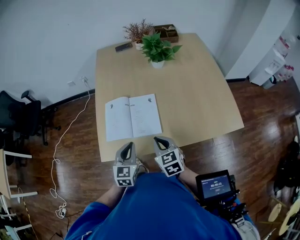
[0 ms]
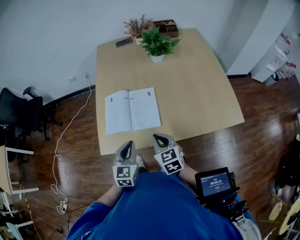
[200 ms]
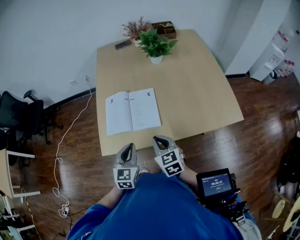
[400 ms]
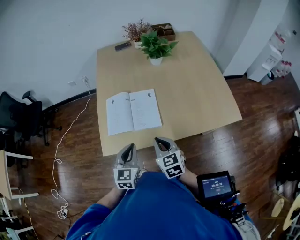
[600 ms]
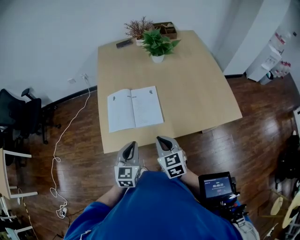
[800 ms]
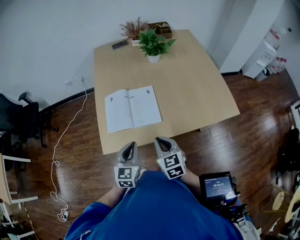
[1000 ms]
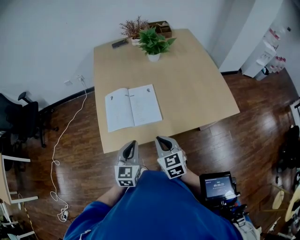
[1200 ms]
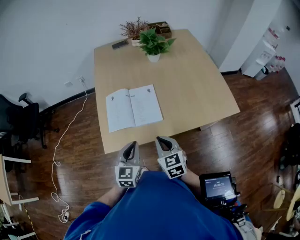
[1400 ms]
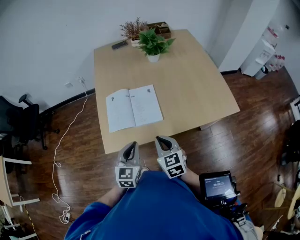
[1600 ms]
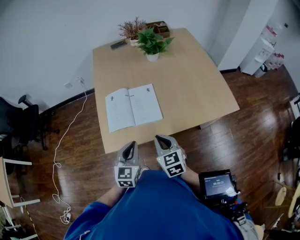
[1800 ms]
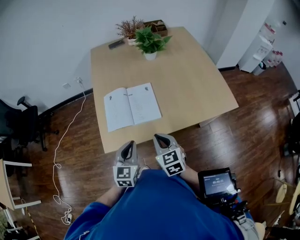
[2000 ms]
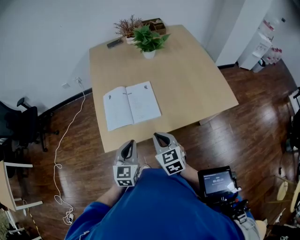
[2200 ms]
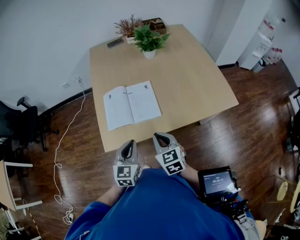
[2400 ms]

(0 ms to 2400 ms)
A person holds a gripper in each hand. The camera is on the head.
0 ms - 1200 ms: The grippers both shift backward by approximately 5 cm.
1200 ms - 2400 ms: The grippers make only small movements.

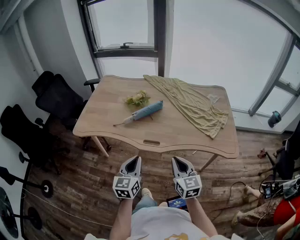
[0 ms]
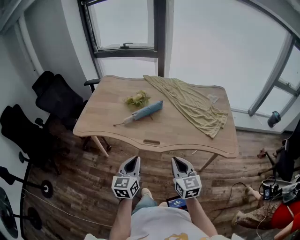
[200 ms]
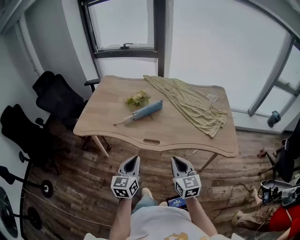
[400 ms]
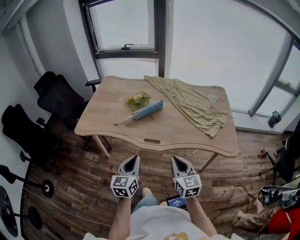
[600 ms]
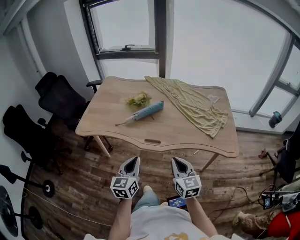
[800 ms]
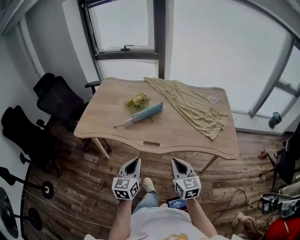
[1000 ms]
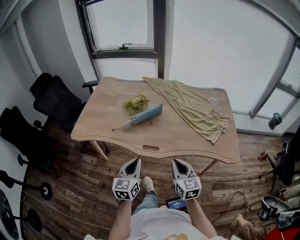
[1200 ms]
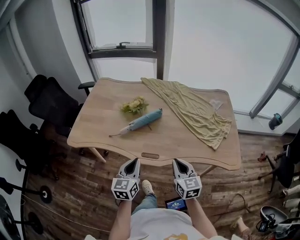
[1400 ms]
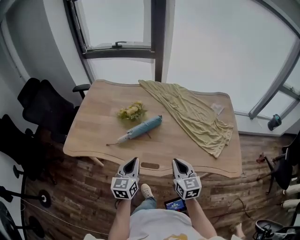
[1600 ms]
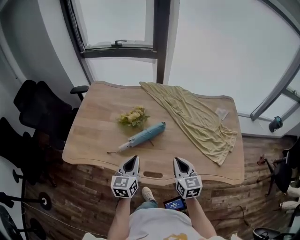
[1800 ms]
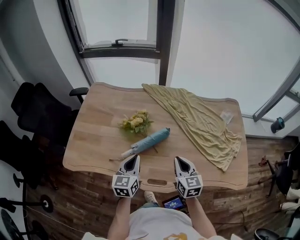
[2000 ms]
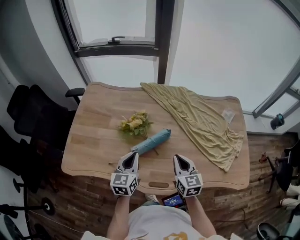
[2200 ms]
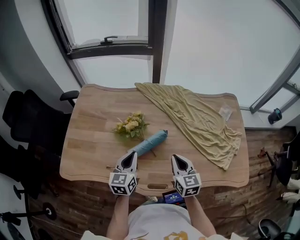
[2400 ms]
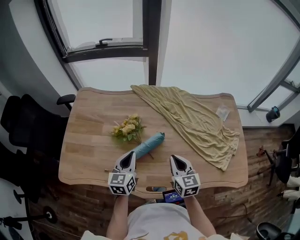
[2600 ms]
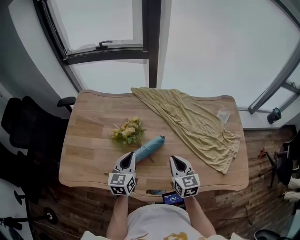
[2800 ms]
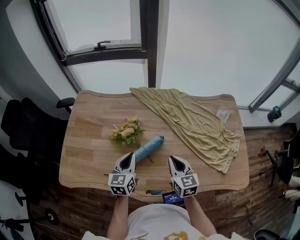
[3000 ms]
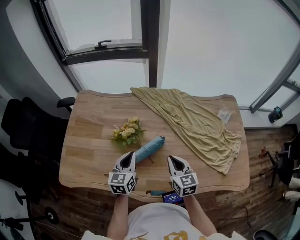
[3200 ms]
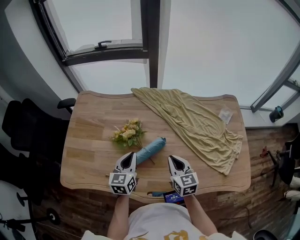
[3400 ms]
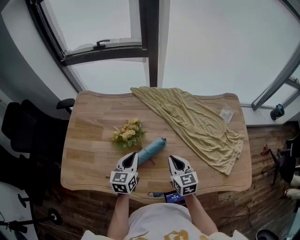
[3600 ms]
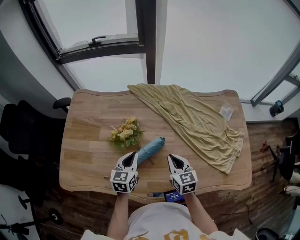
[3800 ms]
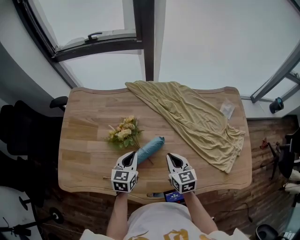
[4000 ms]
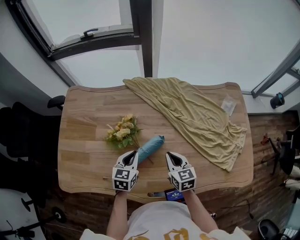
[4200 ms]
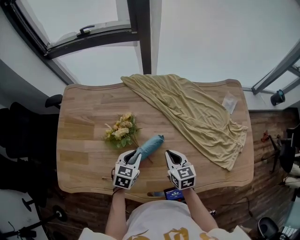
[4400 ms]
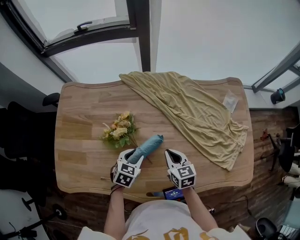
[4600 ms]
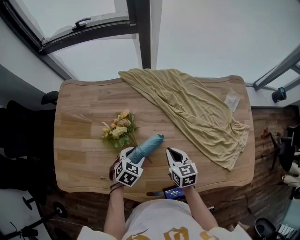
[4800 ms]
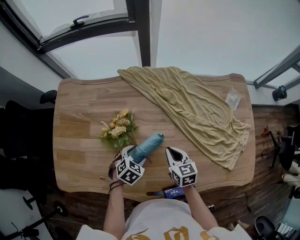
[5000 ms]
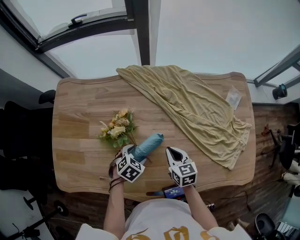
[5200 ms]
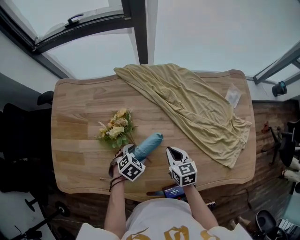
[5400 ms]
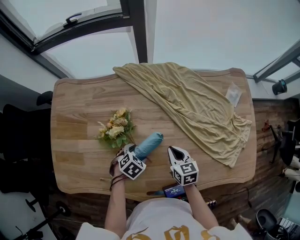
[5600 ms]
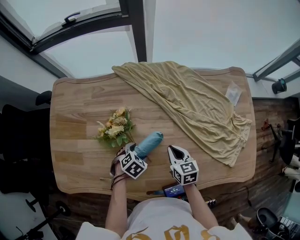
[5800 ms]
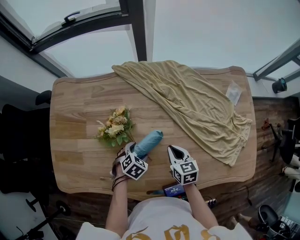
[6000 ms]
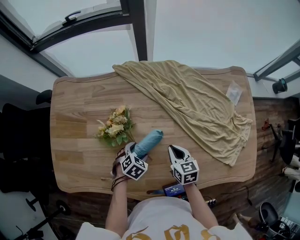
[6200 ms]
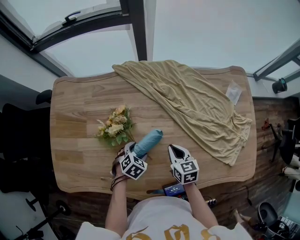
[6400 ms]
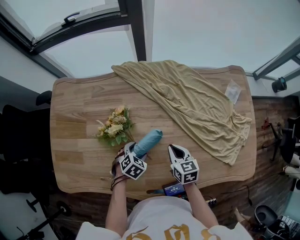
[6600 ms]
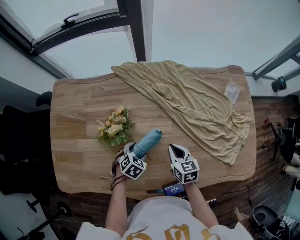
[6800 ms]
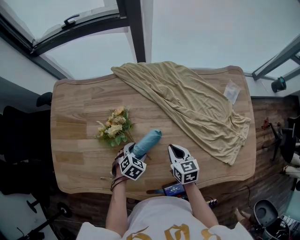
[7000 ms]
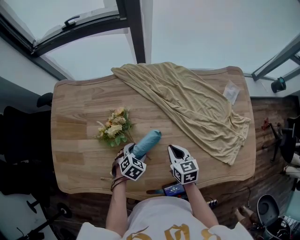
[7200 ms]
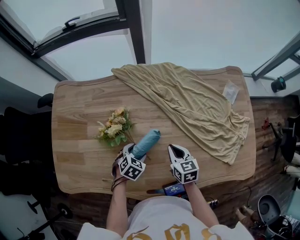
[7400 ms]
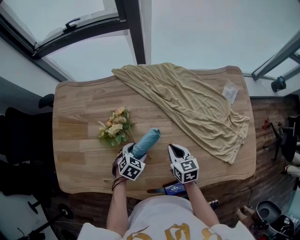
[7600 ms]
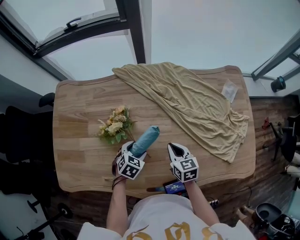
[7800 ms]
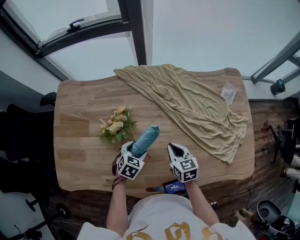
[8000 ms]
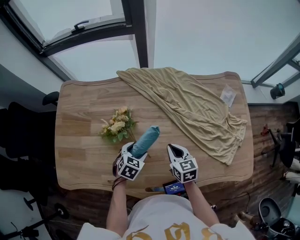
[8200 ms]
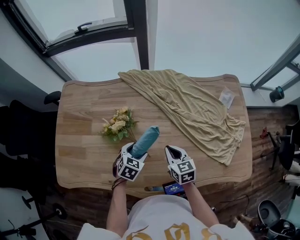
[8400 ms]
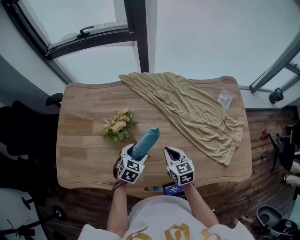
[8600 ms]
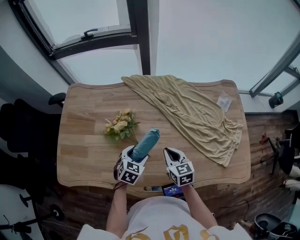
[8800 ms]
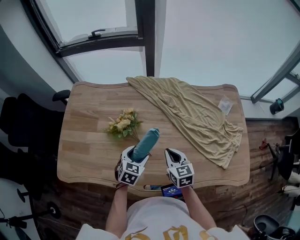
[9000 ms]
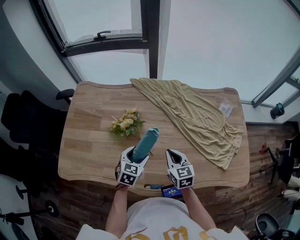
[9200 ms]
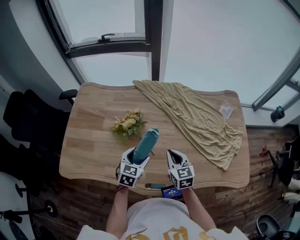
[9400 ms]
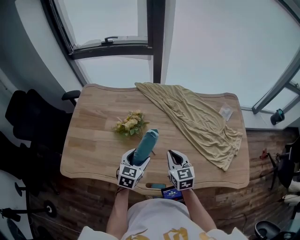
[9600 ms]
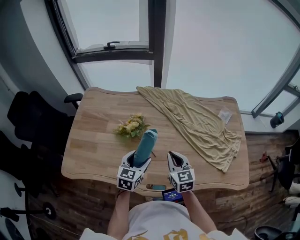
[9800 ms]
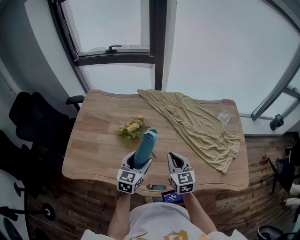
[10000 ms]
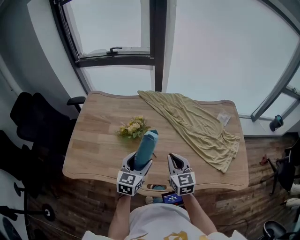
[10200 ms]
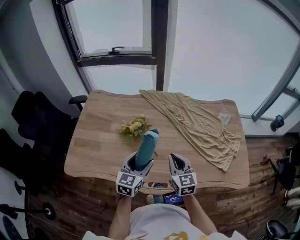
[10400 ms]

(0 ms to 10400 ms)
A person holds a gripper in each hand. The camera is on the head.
0 ms - 1400 ms: The grippers both shift forward by about 10 cm.
1400 ms - 3000 ms: The two grippers go about 30 cm forward.
3000 ms - 4400 ms: The left gripper travels downward by some 10 cm, and turns by roughly 30 degrees. Meanwhile the right gripper moves downward and forward, about 10 cm.
4400 ms - 6000 ms: The left gripper heads downward, covering about 10 cm, turns by approximately 30 degrees, and opens; the right gripper travels downward by about 5 cm.
6000 ms - 7400 ms: The grippers move only a little.
7400 ms - 9000 ms: The left gripper is displaced upward by about 10 cm, and changes its angle by some 20 degrees. The right gripper goes roughly 10 cm upward and backward.
9000 ms - 10400 ms: Both grippers travel together upward and backward, some 15 cm. The left gripper changes its angle by about 30 degrees.

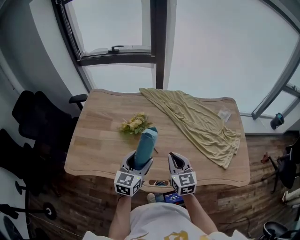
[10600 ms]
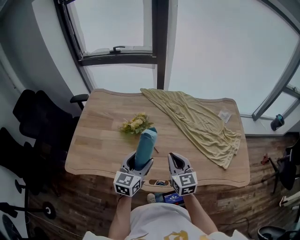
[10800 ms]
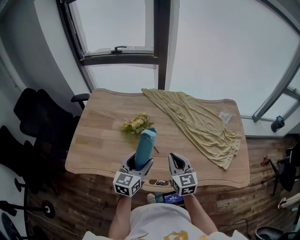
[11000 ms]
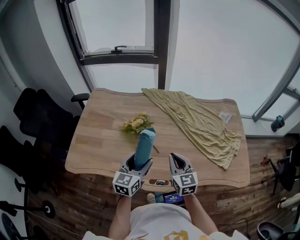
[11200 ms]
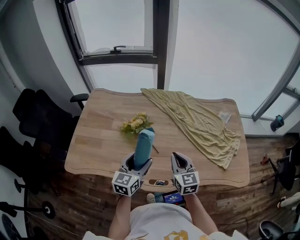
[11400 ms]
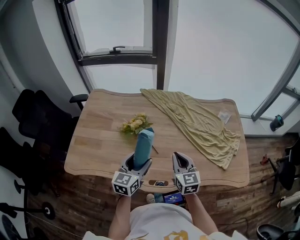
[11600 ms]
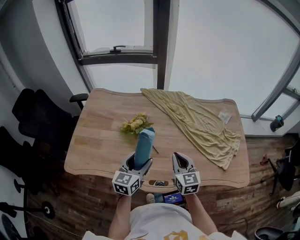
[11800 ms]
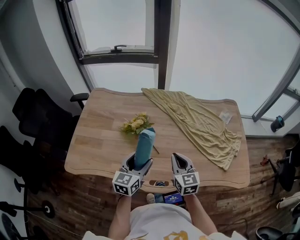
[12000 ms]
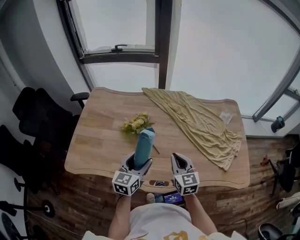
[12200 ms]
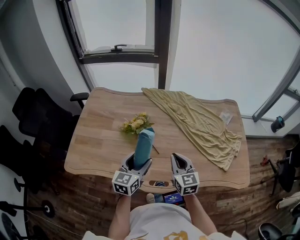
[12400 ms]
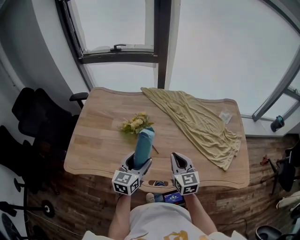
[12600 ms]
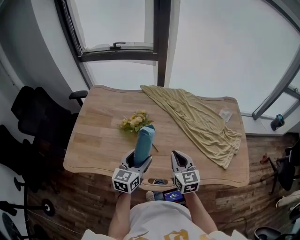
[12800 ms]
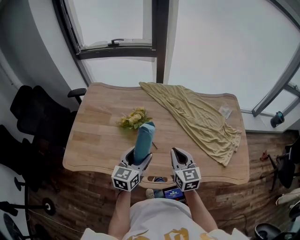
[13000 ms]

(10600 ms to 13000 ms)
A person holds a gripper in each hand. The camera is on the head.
10600 ms - 13000 ms: There are only small adjustments of the grippers.

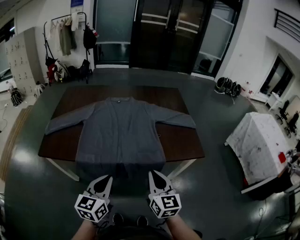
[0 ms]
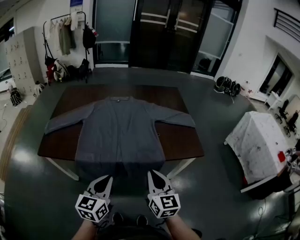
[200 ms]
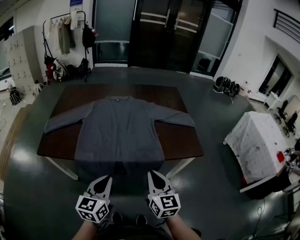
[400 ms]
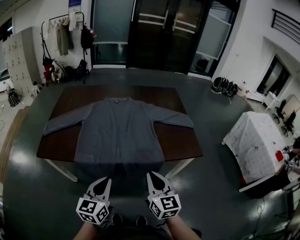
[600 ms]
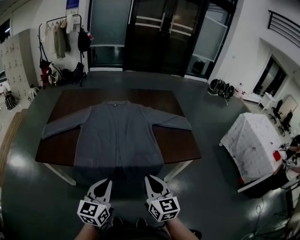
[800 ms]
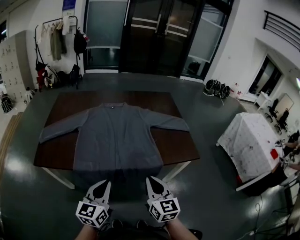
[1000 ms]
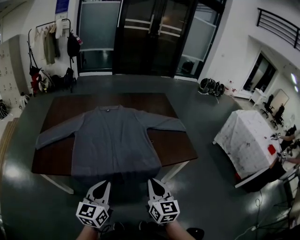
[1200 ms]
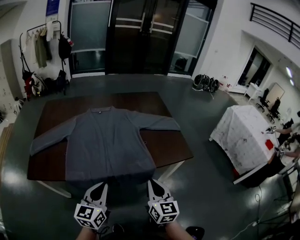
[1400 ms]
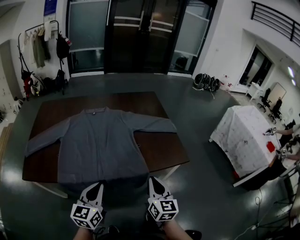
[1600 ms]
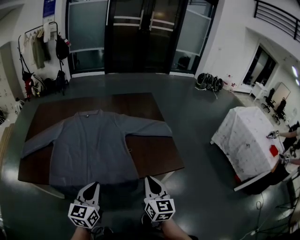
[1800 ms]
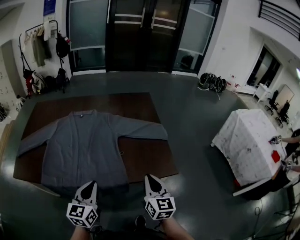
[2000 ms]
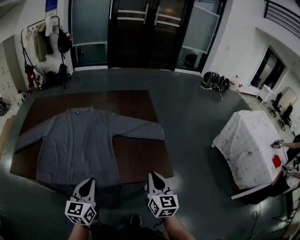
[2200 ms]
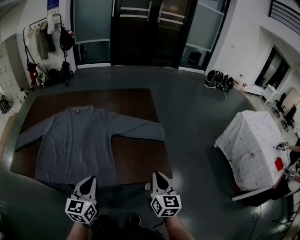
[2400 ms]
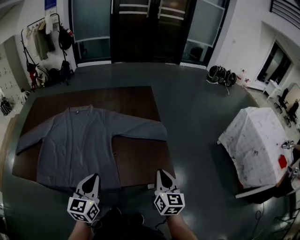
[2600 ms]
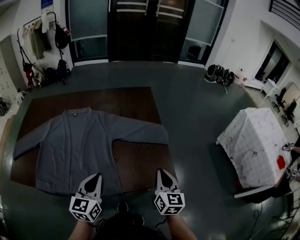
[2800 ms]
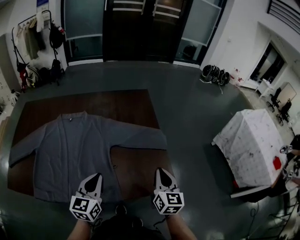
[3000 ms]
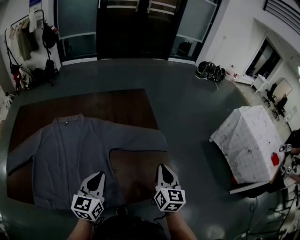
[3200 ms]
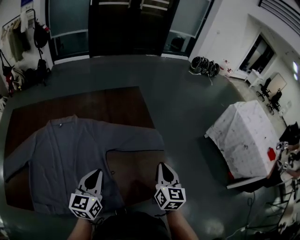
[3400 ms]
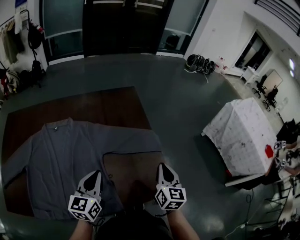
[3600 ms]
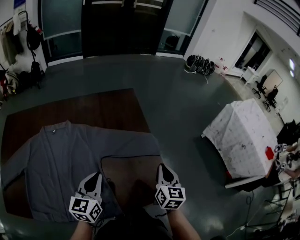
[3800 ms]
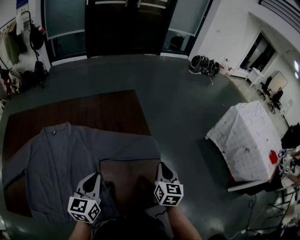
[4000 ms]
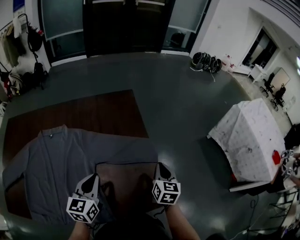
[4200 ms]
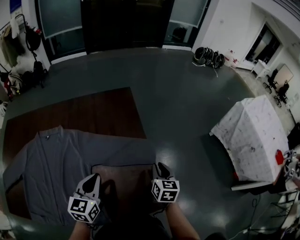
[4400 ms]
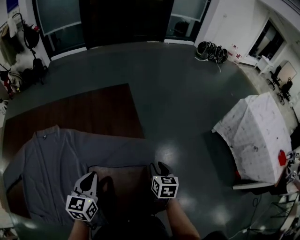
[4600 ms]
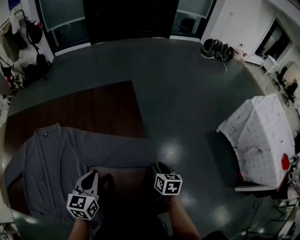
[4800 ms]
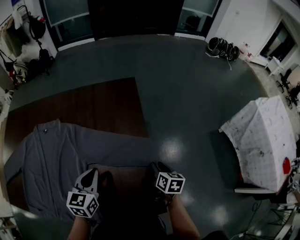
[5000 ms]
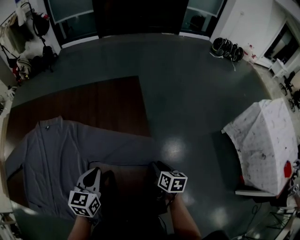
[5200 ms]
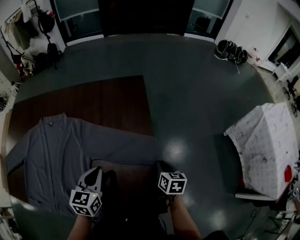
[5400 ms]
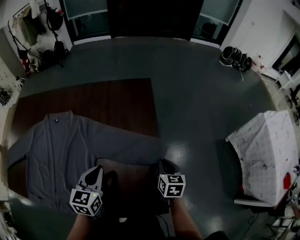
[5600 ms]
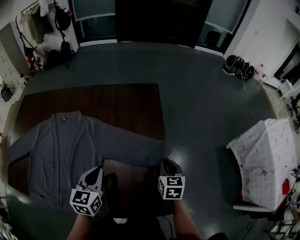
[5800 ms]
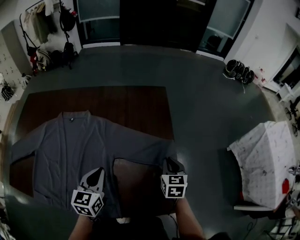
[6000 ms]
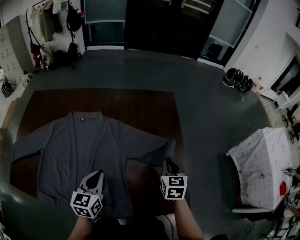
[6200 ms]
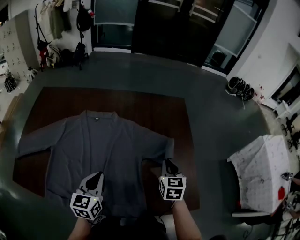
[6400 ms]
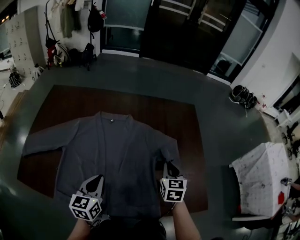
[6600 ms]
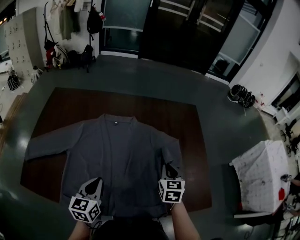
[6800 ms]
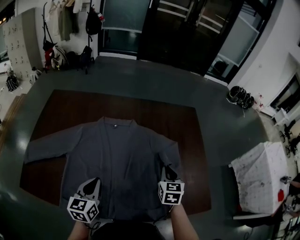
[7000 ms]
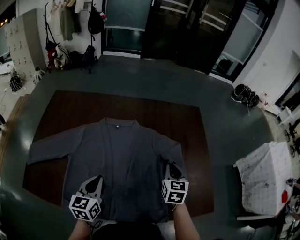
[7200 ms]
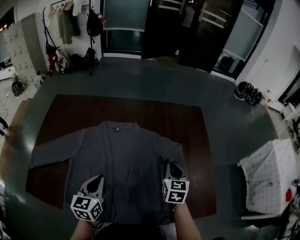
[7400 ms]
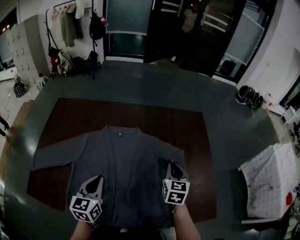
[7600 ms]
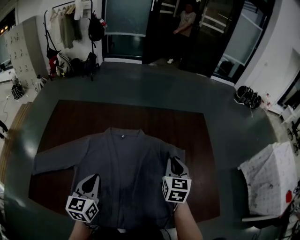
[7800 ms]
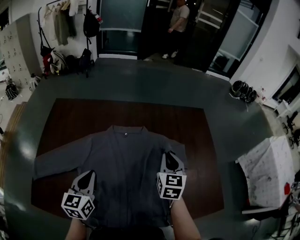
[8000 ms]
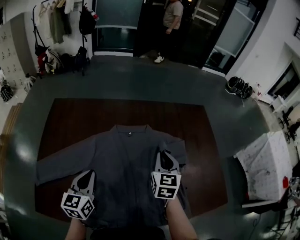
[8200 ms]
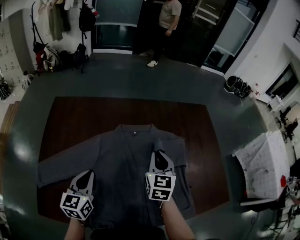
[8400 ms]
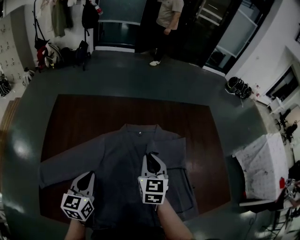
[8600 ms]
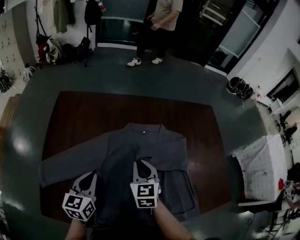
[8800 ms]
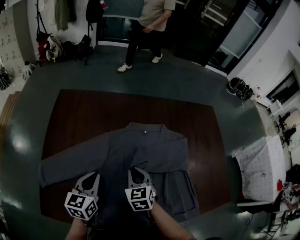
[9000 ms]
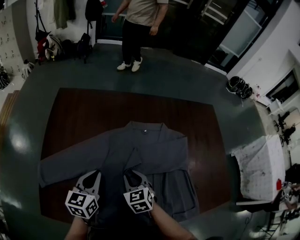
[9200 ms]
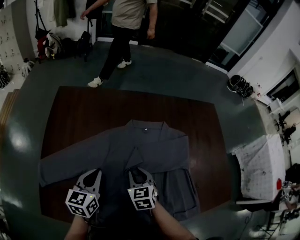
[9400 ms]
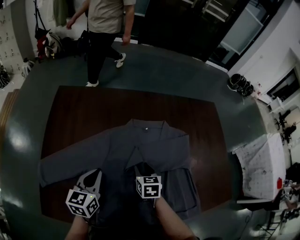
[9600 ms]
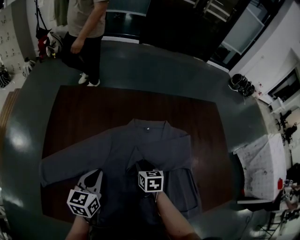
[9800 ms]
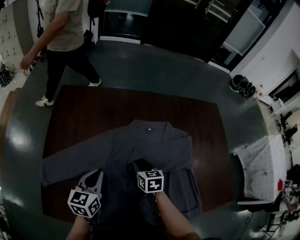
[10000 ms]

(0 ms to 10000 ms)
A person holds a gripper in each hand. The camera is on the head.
0 ms - 1400 ms: The grippers make only small movements.
1400 ms - 2800 ms: The left gripper travels forward and to the right by some 30 cm. The right gripper goes approximately 35 cm to the right and forward.
2800 ms - 4200 ms: Both grippers travel together forward, about 20 cm.
4200 ms - 5800 ms: The right gripper heads forward, covering approximately 5 cm, rotates approximately 20 degrees, and opens and closes again.
5800 ms - 7200 ms: Both grippers travel together to the left, about 30 cm.
7200 ms - 8600 ms: The grippers both shift to the left by approximately 25 cm.
8600 ms - 10000 ms: The right gripper travels downward and to the left by approximately 15 cm, rotates some 30 degrees, and opens its fingers.
